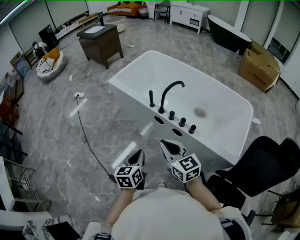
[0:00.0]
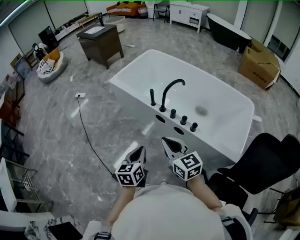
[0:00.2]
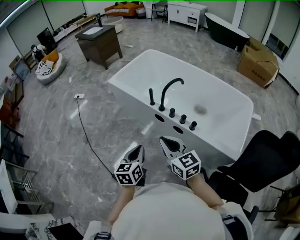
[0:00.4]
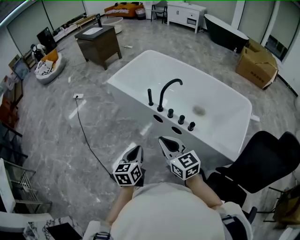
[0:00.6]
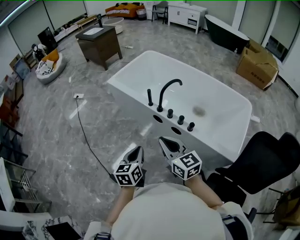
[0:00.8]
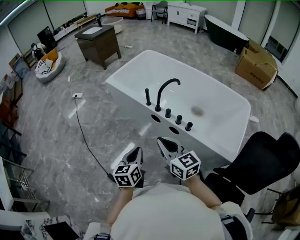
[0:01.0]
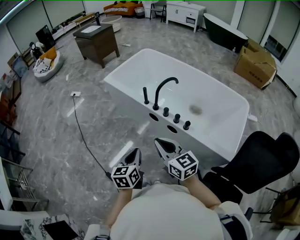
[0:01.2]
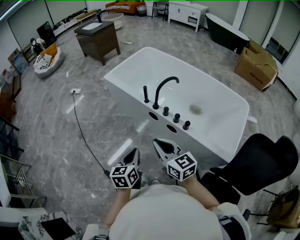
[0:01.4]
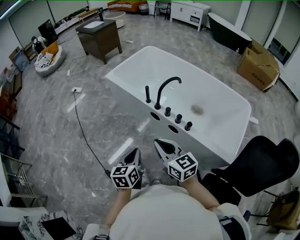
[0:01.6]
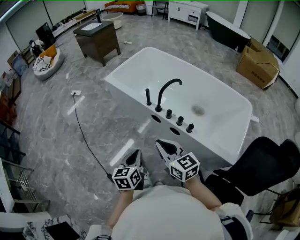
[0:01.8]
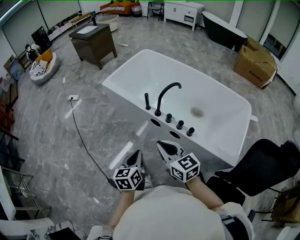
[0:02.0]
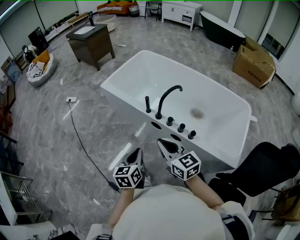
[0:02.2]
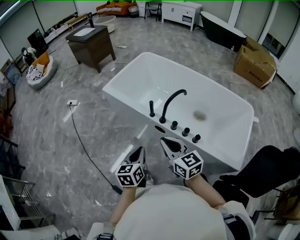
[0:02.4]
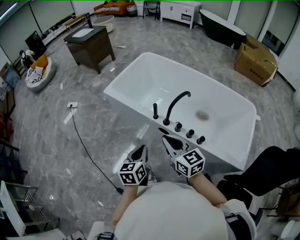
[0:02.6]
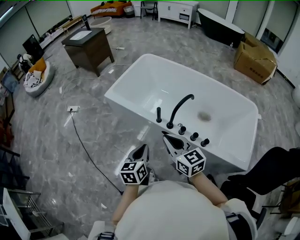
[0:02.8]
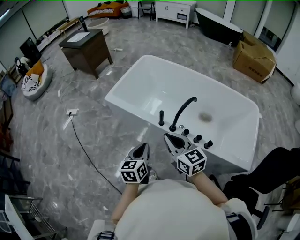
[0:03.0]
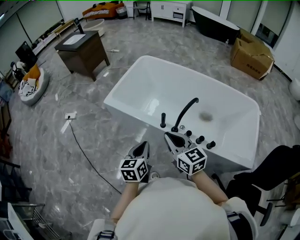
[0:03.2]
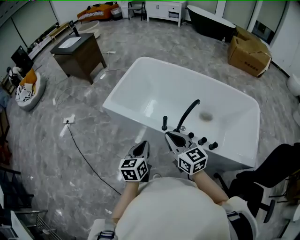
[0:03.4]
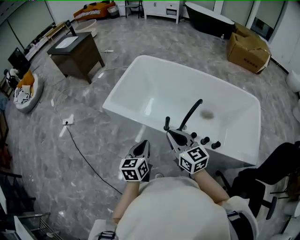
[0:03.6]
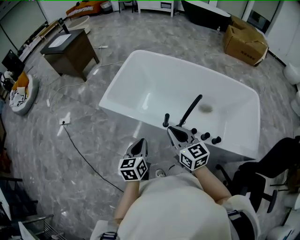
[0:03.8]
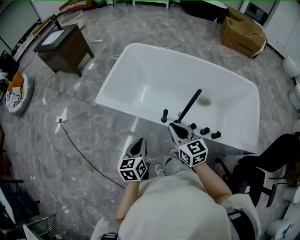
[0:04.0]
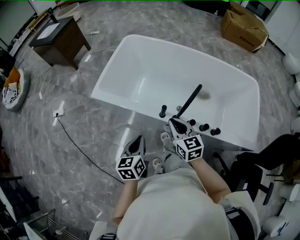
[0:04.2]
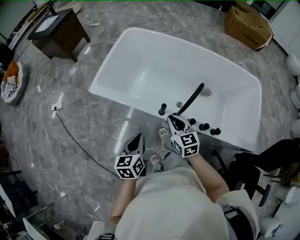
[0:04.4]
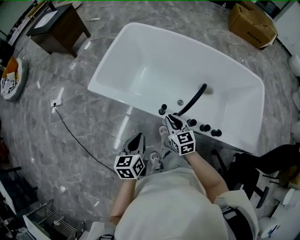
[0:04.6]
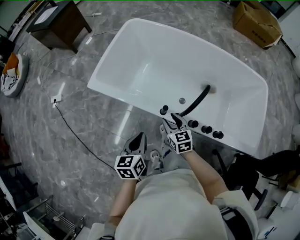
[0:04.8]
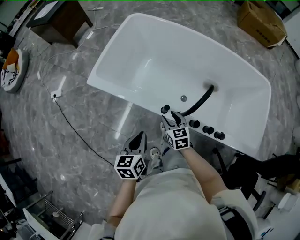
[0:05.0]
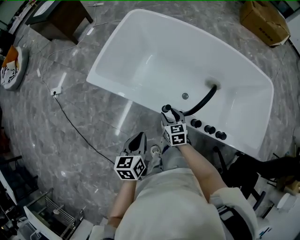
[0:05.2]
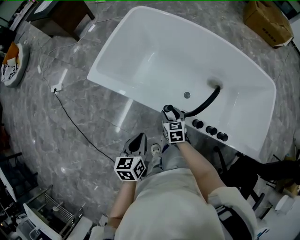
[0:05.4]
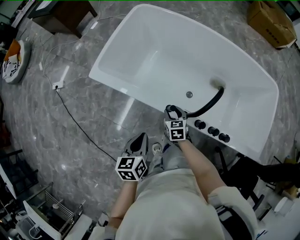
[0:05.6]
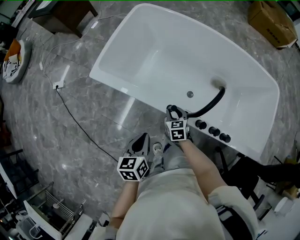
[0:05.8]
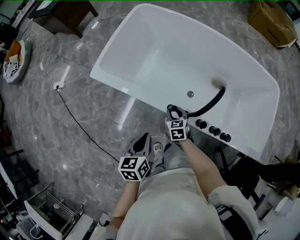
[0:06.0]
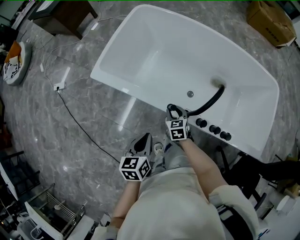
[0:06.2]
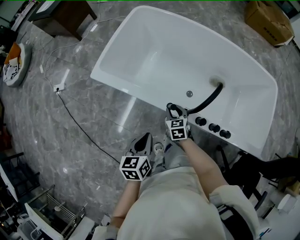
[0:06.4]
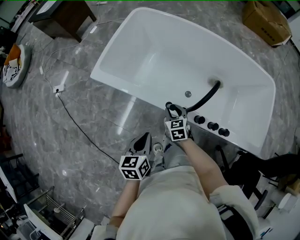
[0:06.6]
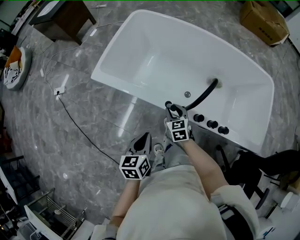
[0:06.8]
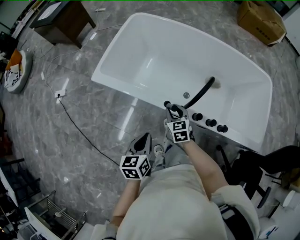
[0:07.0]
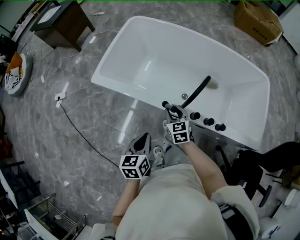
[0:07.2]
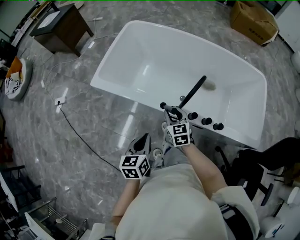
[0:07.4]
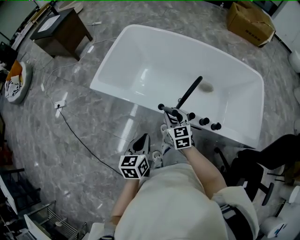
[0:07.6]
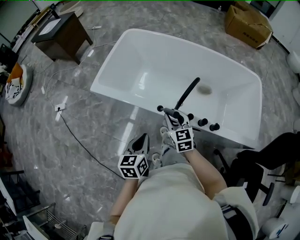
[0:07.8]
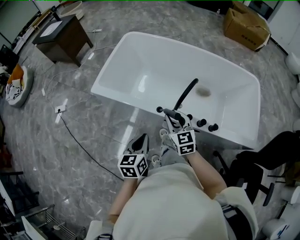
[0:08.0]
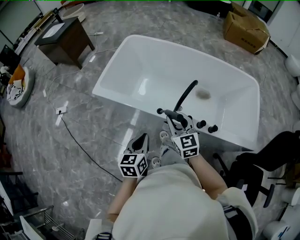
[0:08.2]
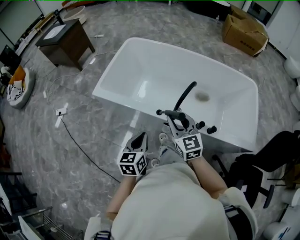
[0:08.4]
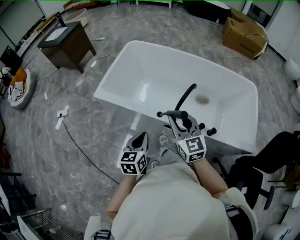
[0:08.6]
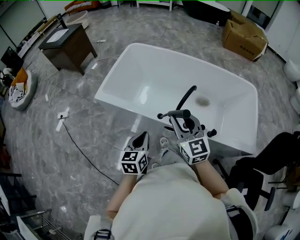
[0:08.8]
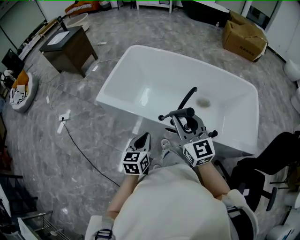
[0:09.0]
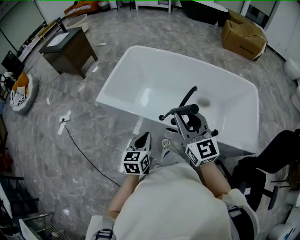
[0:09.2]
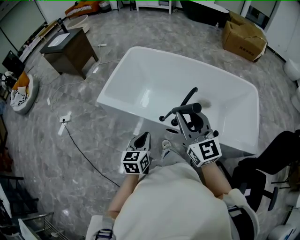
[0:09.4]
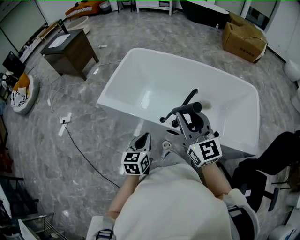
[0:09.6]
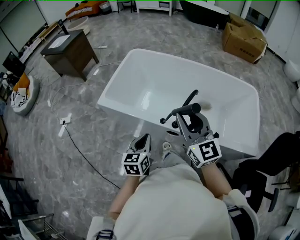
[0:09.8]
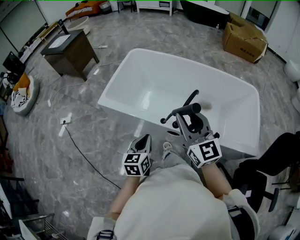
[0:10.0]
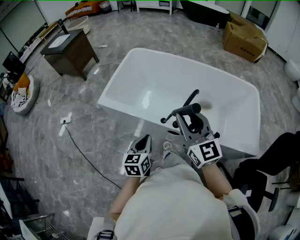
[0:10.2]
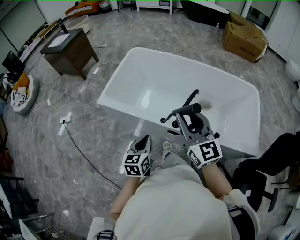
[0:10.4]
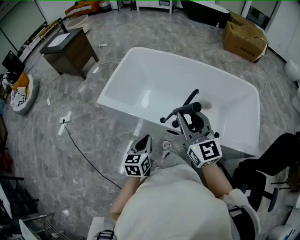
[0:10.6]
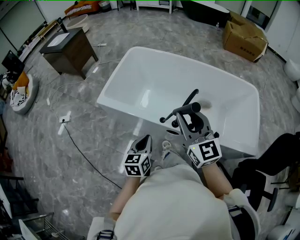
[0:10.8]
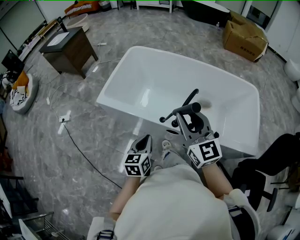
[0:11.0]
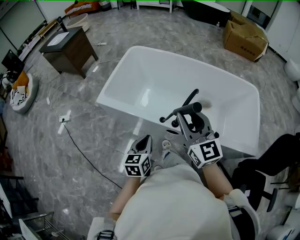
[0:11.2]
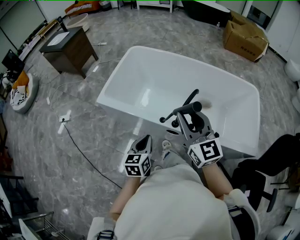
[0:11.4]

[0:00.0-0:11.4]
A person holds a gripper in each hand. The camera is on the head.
0:00.0 to 0:01.4: The grippers move only a little.
0:01.4 to 0:02.8: The two grippers go some 25 cm forward.
0:02.8 to 0:04.2: The left gripper heads forward and to the left, covering roughly 15 cm. Meanwhile the right gripper goes roughly 20 cm forward and downward, and changes its angle by roughly 20 degrees.
0:04.2 to 0:05.6: The right gripper shifts about 25 cm downward, changes its angle by some 20 degrees, and opens up, while the left gripper goes roughly 5 cm downward.
0:05.6 to 0:07.2: The left gripper moves backward, roughly 5 cm. Meanwhile the right gripper is displaced upward by some 10 cm.
0:07.2 to 0:08.6: The left gripper shifts roughly 5 cm upward, while the right gripper goes roughly 20 cm upward, and turns by approximately 20 degrees.
0:08.6 to 0:10.0: The right gripper travels upward by some 10 cm.
0:10.0 to 0:11.4: Neither gripper changes place.

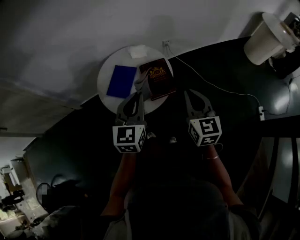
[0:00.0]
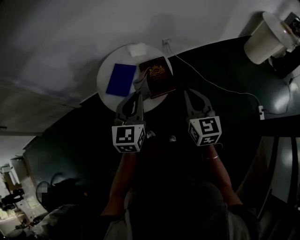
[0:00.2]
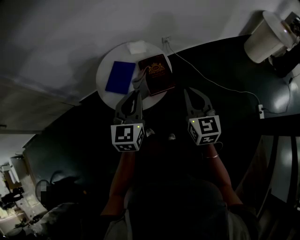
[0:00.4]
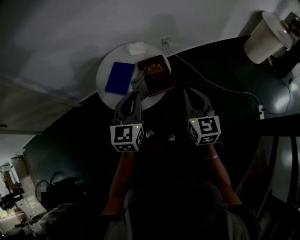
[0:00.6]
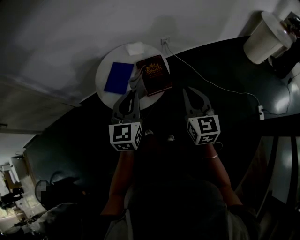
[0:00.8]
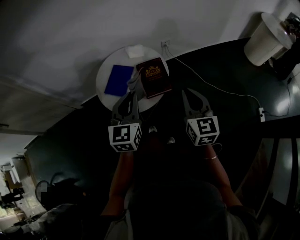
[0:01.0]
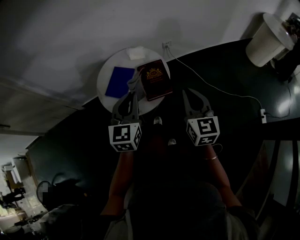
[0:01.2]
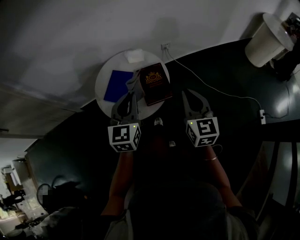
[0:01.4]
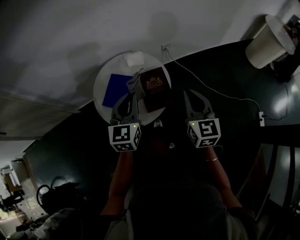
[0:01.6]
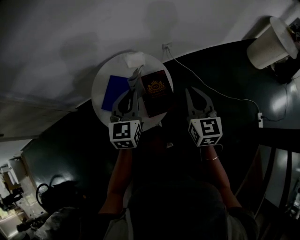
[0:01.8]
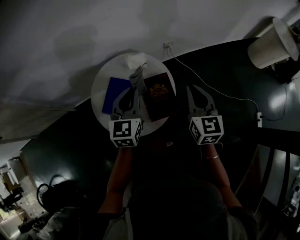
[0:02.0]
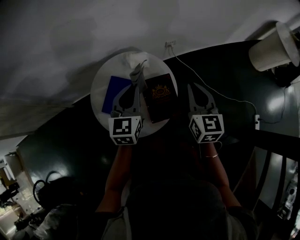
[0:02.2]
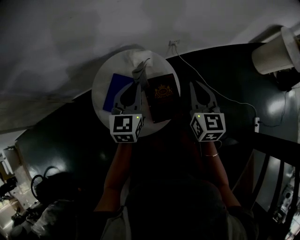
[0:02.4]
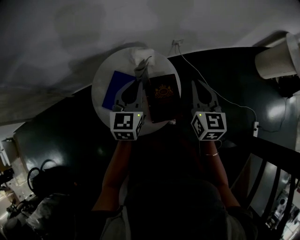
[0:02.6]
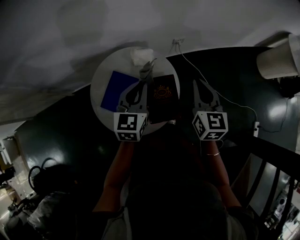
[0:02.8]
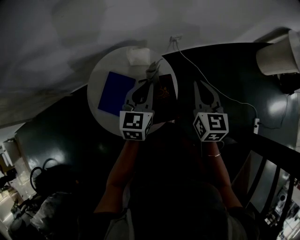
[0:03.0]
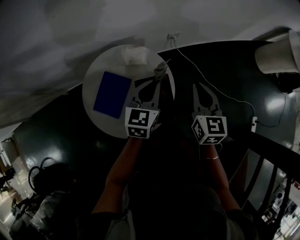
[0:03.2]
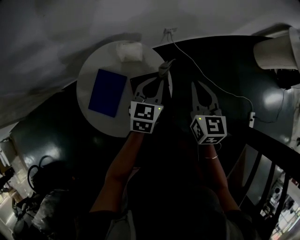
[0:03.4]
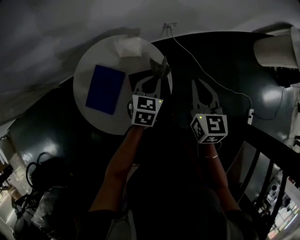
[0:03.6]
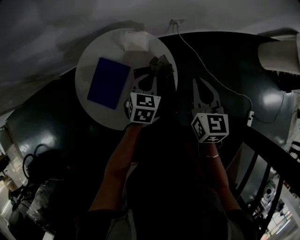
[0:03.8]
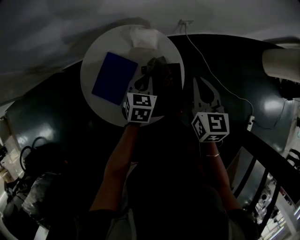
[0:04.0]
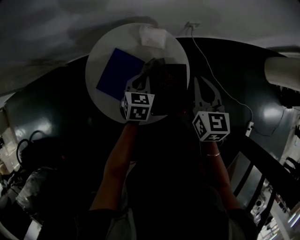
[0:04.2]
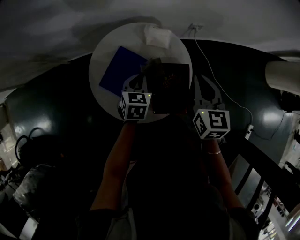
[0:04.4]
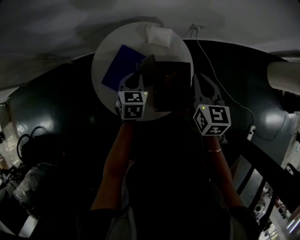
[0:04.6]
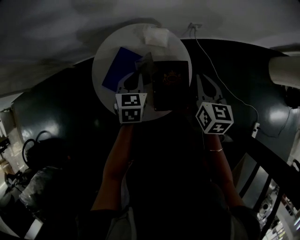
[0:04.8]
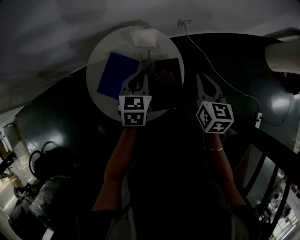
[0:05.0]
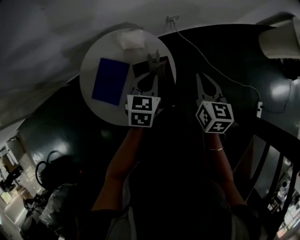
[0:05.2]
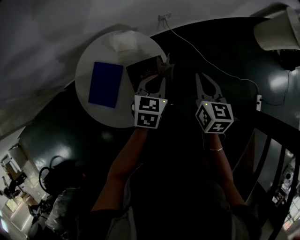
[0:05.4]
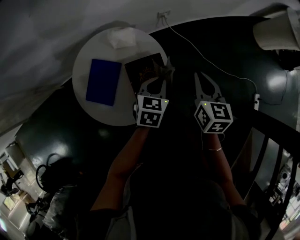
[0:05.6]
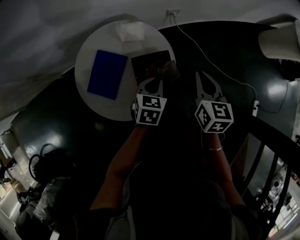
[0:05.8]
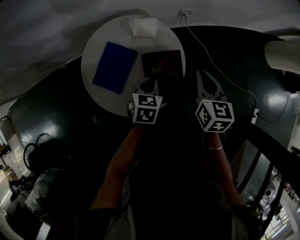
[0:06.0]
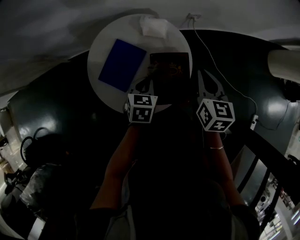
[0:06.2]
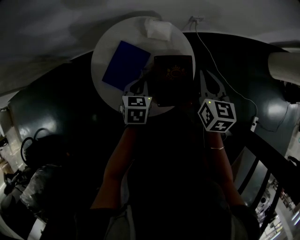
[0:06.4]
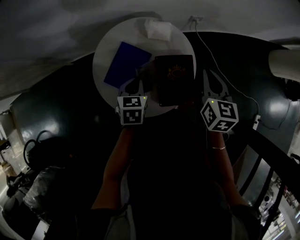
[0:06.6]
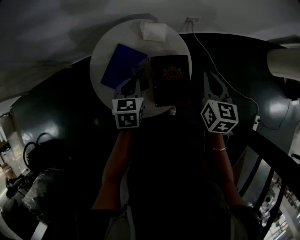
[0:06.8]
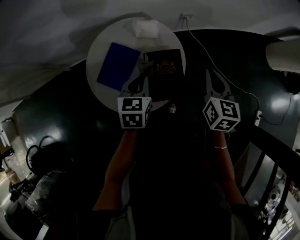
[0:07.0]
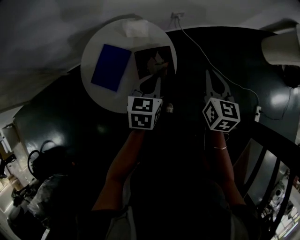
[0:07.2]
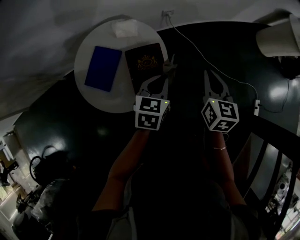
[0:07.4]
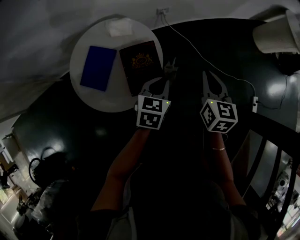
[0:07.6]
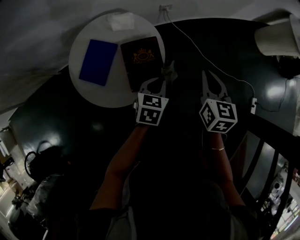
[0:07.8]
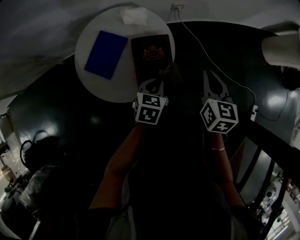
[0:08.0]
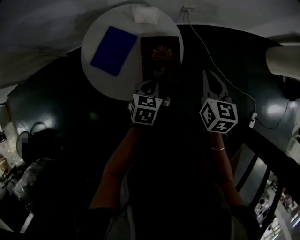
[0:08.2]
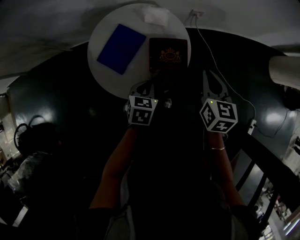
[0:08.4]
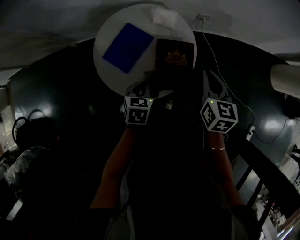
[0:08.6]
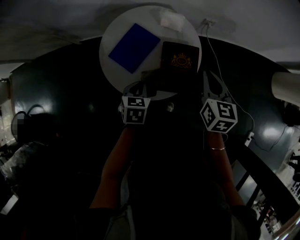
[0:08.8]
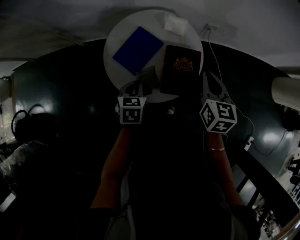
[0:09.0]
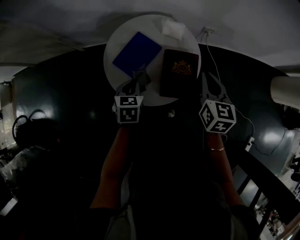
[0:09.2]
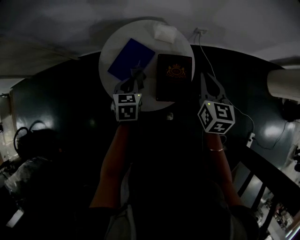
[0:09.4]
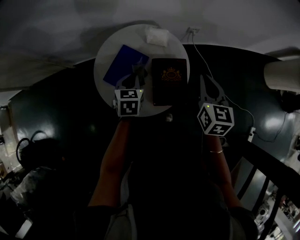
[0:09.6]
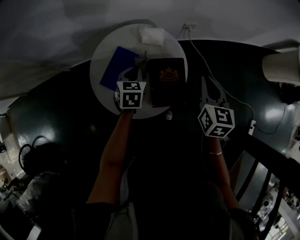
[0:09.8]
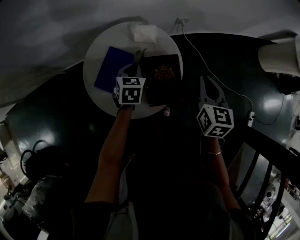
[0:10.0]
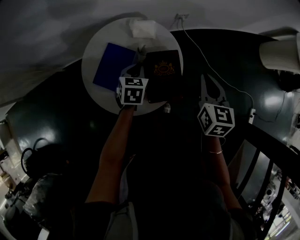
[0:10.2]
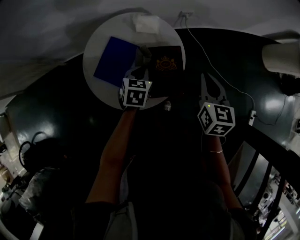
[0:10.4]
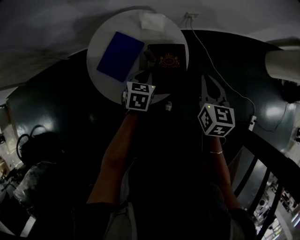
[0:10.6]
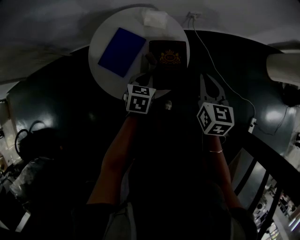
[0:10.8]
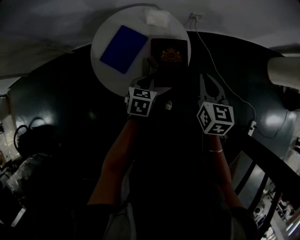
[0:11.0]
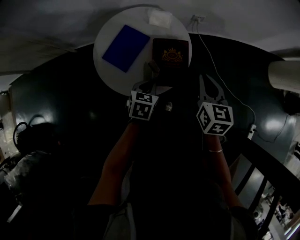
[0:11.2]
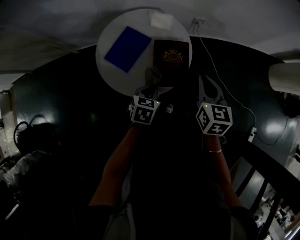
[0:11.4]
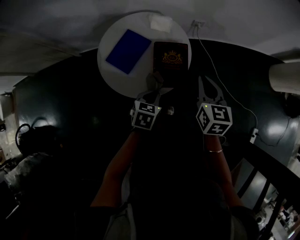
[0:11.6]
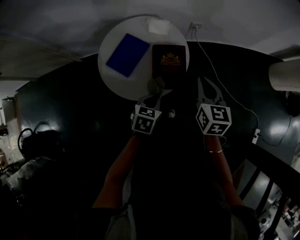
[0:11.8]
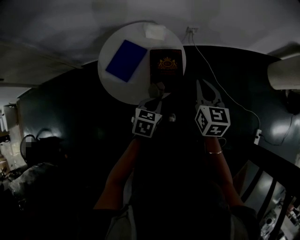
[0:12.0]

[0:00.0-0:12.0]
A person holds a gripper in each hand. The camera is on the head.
0:00.0 to 0:01.6: Both grippers move forward, roughly 10 cm.
0:01.6 to 0:03.0: The right gripper travels forward by some 15 cm. The left gripper shifts some 15 cm forward and downward.
0:03.0 to 0:04.4: The right gripper is displaced to the left by roughly 10 cm. Meanwhile the left gripper is displaced downward and to the left by about 15 cm, and swivels roughly 30 degrees.
0:06.0 to 0:07.6: The left gripper goes some 15 cm to the right and upward; the right gripper is displaced to the right and backward by about 15 cm.
0:07.6 to 0:09.0: The right gripper shifts by approximately 15 cm, and changes its angle by about 20 degrees; the left gripper moves some 25 cm, and rotates about 30 degrees.
0:09.0 to 0:10.4: The right gripper moves to the right, roughly 5 cm; the left gripper moves forward and to the right, some 15 cm.
0:10.4 to 0:12.0: The left gripper travels backward and to the right by roughly 20 cm, while the right gripper is displaced backward by some 5 cm.
